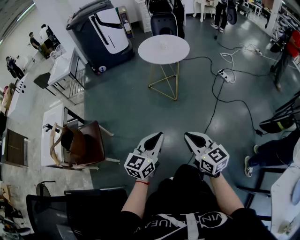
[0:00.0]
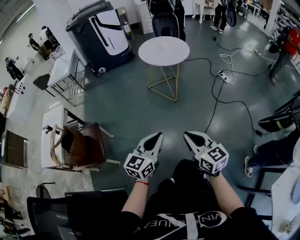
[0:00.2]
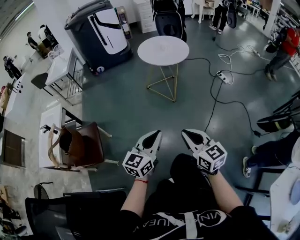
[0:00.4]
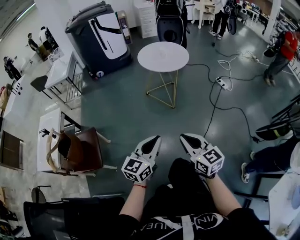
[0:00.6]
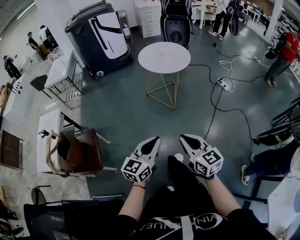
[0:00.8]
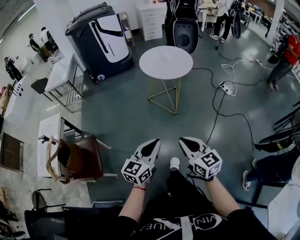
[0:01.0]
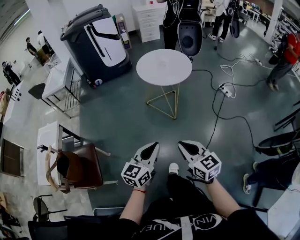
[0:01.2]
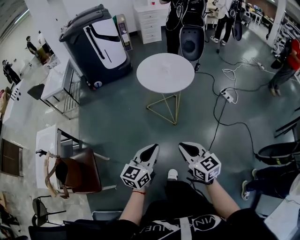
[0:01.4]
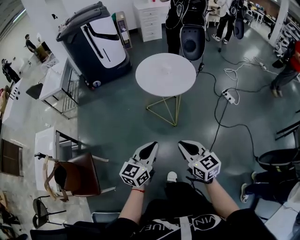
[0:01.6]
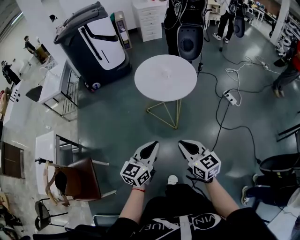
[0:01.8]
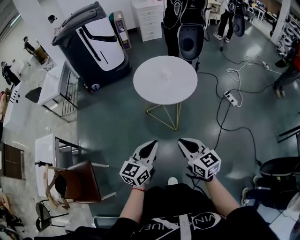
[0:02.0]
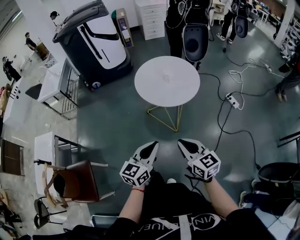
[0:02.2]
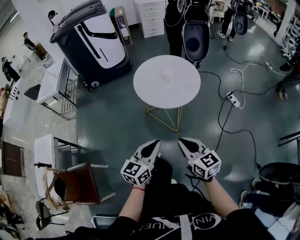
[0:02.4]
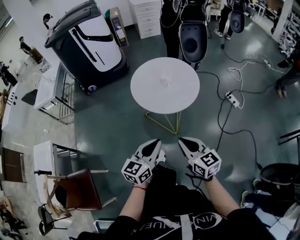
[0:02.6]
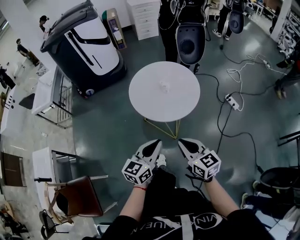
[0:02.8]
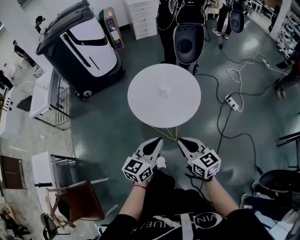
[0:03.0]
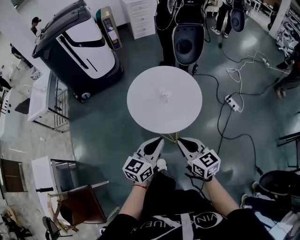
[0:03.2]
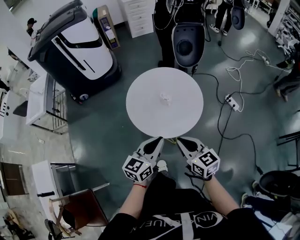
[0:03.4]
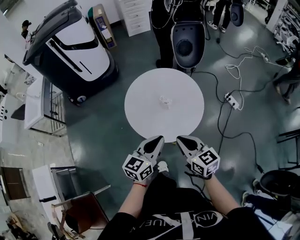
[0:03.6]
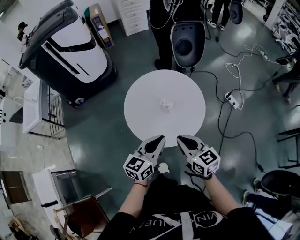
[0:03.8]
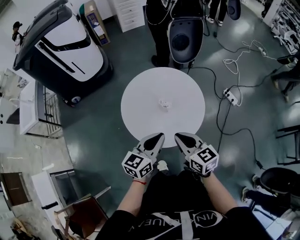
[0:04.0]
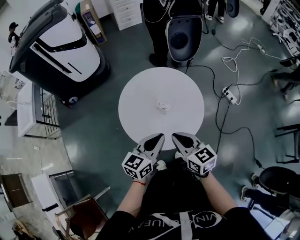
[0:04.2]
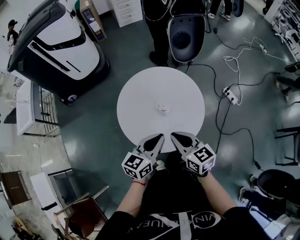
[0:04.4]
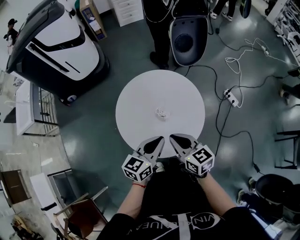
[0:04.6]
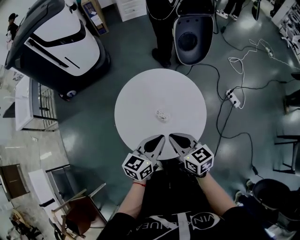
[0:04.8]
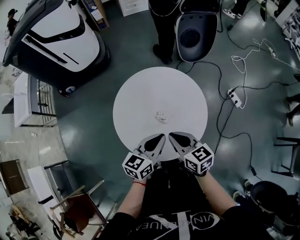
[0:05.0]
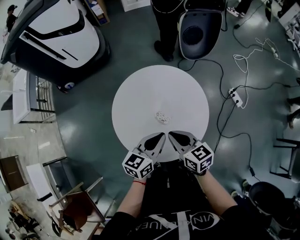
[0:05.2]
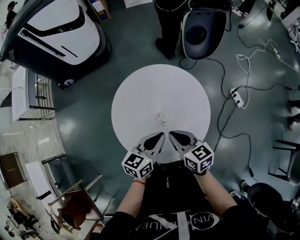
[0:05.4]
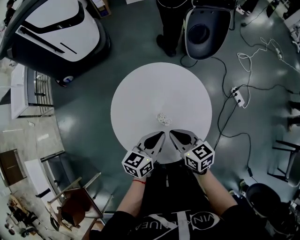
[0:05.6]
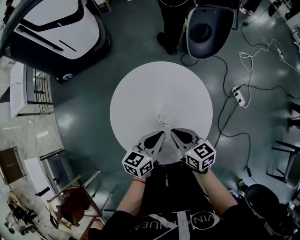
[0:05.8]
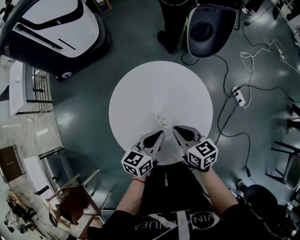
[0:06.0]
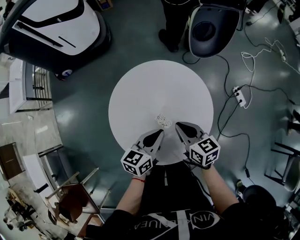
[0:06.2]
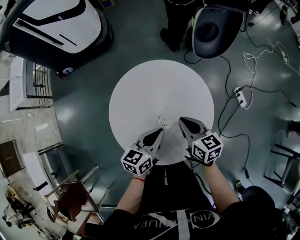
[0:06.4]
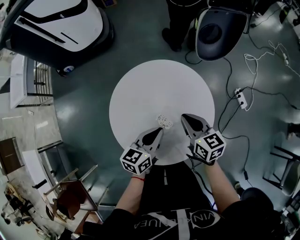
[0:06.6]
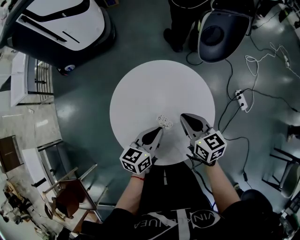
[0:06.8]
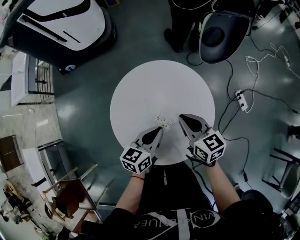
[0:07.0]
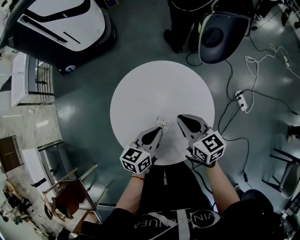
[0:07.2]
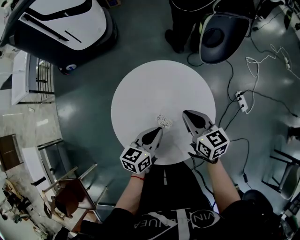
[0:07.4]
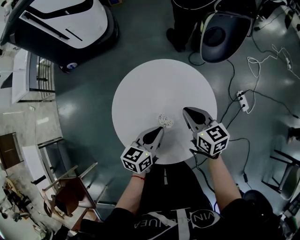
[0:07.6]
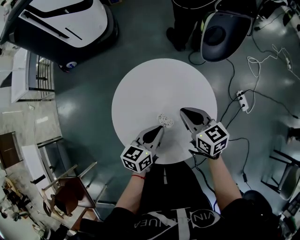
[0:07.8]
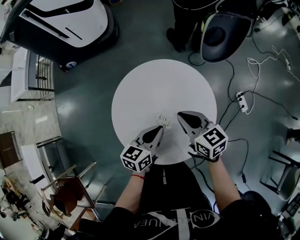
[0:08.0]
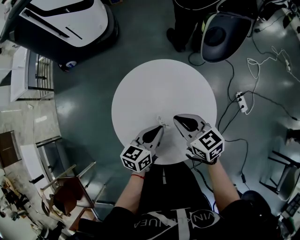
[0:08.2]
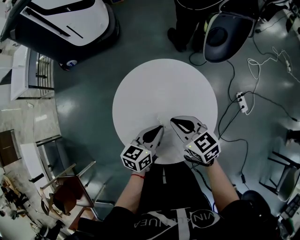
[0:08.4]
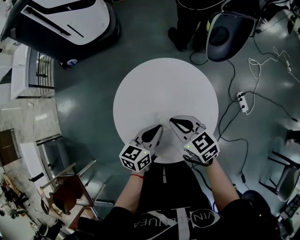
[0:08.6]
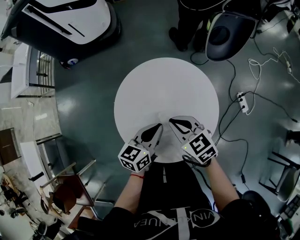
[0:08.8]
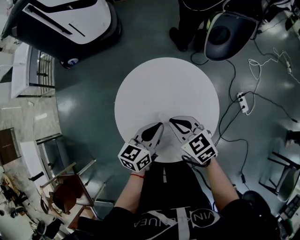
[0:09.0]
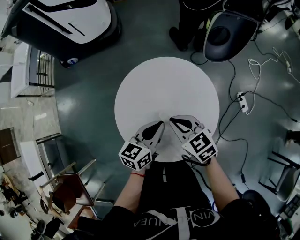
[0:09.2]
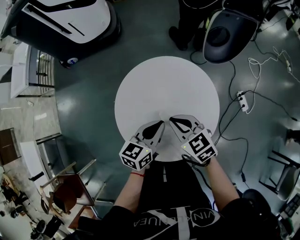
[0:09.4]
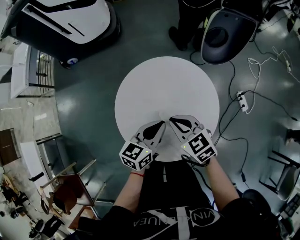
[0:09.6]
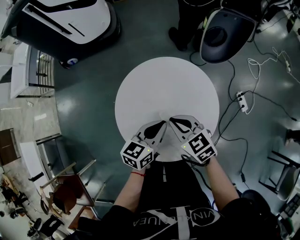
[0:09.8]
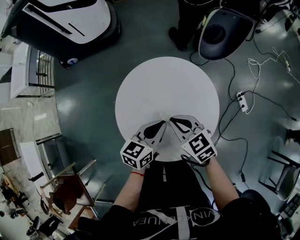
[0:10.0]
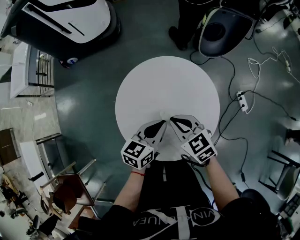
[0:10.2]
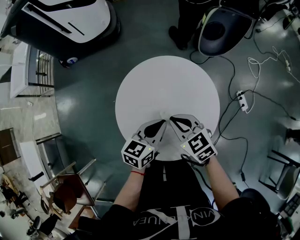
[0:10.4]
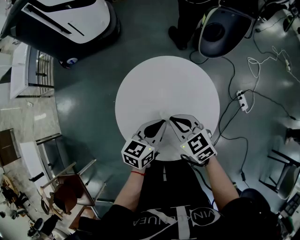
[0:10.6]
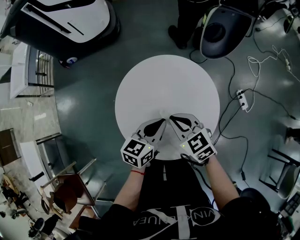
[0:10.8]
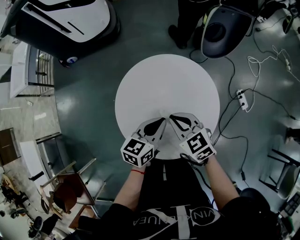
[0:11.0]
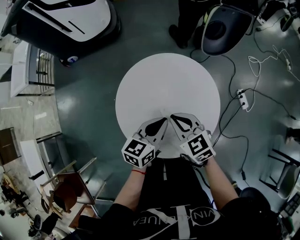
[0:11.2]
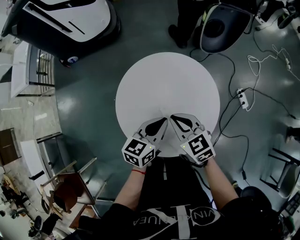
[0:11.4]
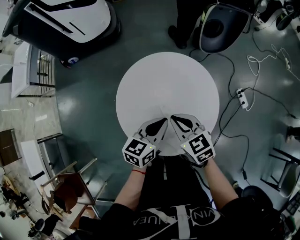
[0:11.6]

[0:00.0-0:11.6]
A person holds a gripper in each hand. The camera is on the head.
0:00.0 to 0:01.4: Both grippers travel together forward, about 25 cm.
0:01.4 to 0:02.8: The two grippers go roughly 30 cm forward.
0:02.8 to 0:04.4: The grippers both shift forward by roughly 25 cm.
0:04.4 to 0:05.8: The two grippers go some 15 cm forward and downward.
0:05.8 to 0:07.2: The right gripper travels forward by some 5 cm.
0:07.2 to 0:08.8: The right gripper moves to the left, roughly 5 cm, and turns by some 20 degrees.
0:08.8 to 0:11.6: There are only small adjustments of the grippers.

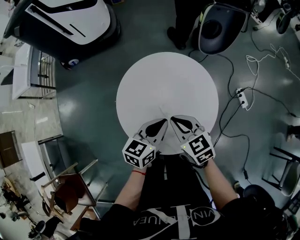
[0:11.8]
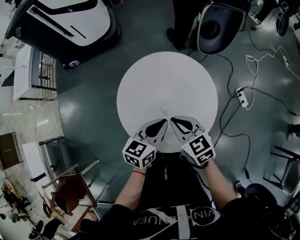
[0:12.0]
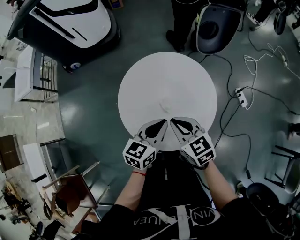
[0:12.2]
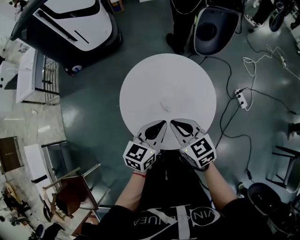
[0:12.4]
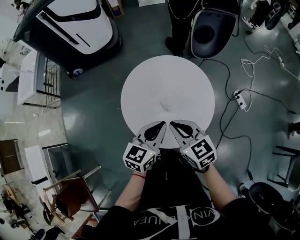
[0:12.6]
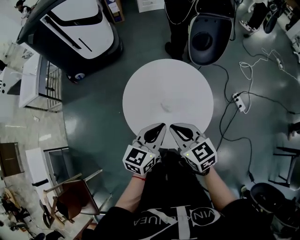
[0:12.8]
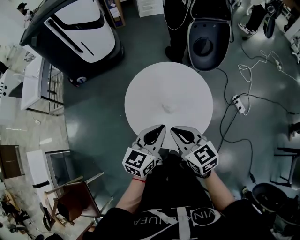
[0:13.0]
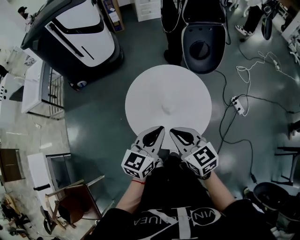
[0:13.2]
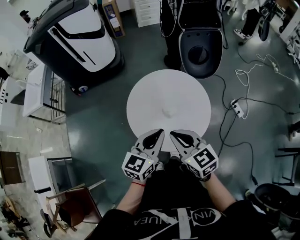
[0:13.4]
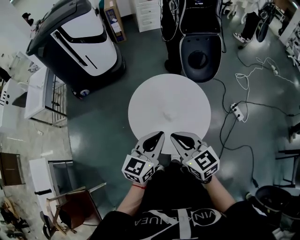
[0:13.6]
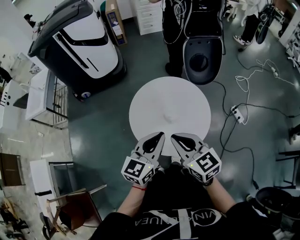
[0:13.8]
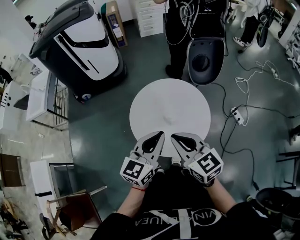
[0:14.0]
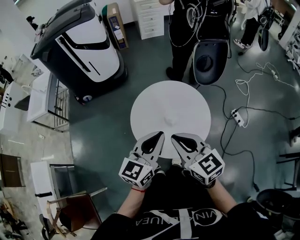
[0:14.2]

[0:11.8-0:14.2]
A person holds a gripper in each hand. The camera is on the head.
0:11.8 to 0:13.0: Both grippers move upward and backward, some 15 cm.
0:13.0 to 0:14.2: Both grippers travel together upward, roughly 10 cm.

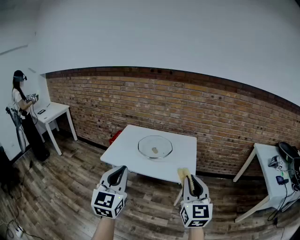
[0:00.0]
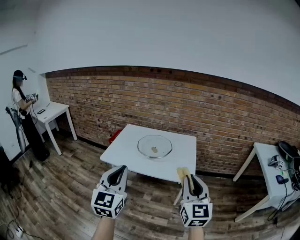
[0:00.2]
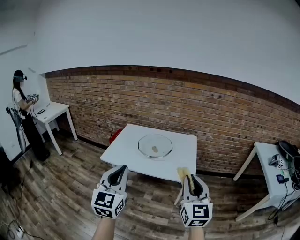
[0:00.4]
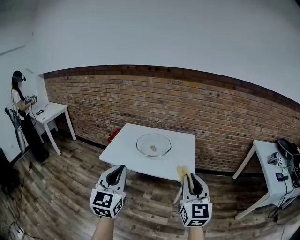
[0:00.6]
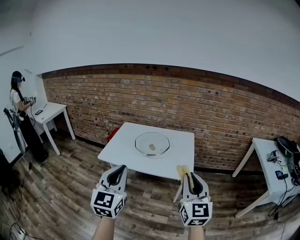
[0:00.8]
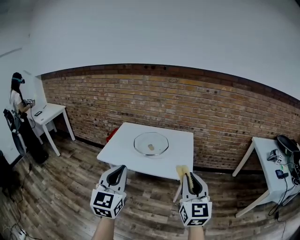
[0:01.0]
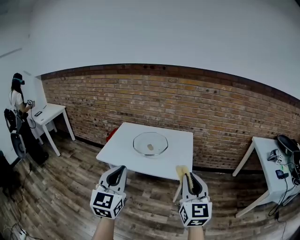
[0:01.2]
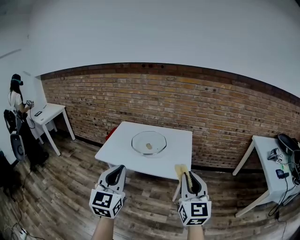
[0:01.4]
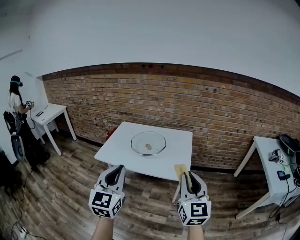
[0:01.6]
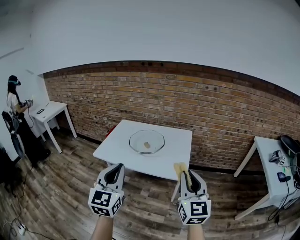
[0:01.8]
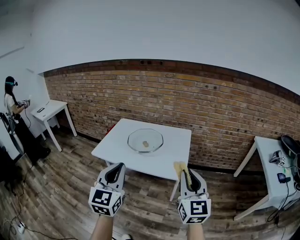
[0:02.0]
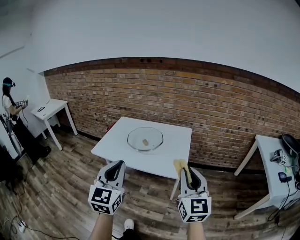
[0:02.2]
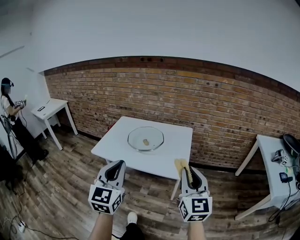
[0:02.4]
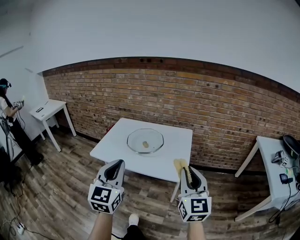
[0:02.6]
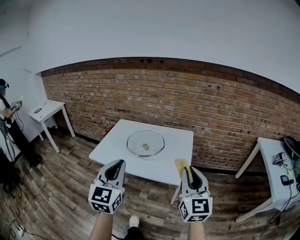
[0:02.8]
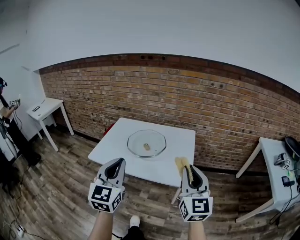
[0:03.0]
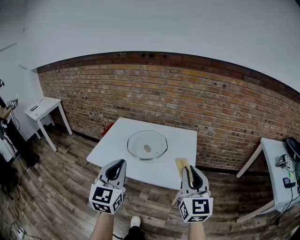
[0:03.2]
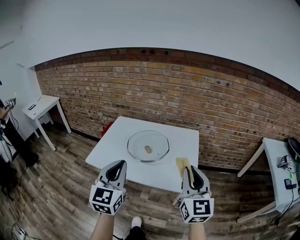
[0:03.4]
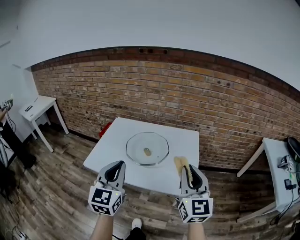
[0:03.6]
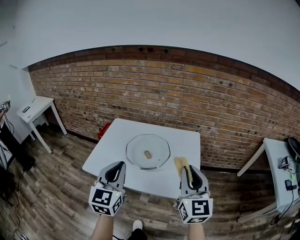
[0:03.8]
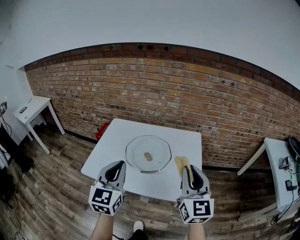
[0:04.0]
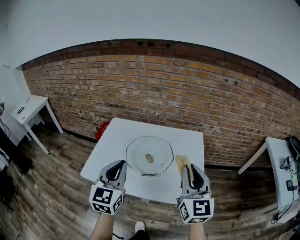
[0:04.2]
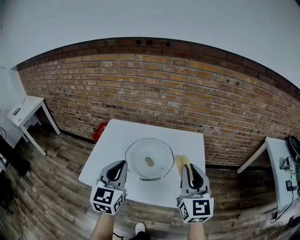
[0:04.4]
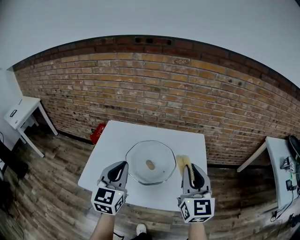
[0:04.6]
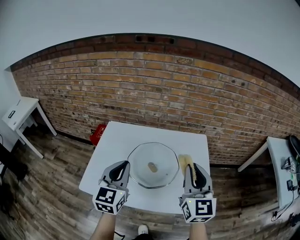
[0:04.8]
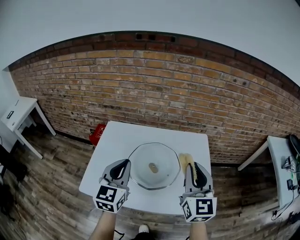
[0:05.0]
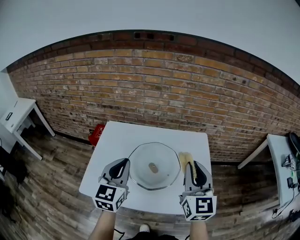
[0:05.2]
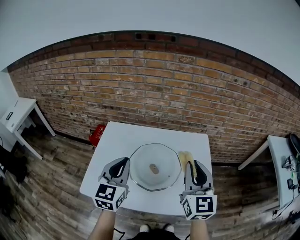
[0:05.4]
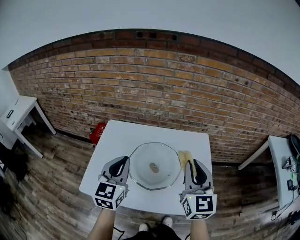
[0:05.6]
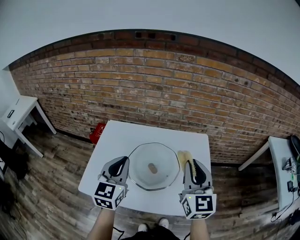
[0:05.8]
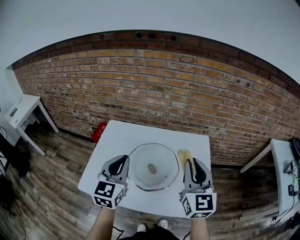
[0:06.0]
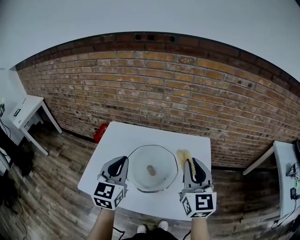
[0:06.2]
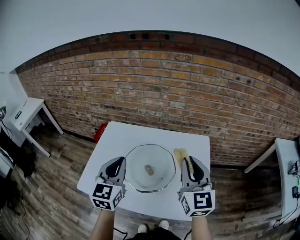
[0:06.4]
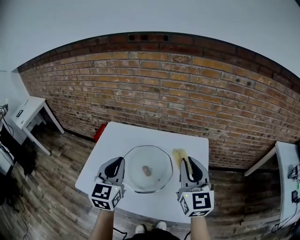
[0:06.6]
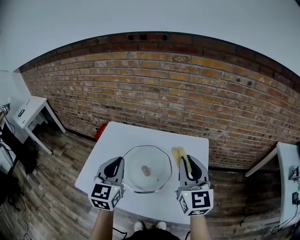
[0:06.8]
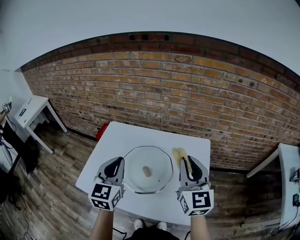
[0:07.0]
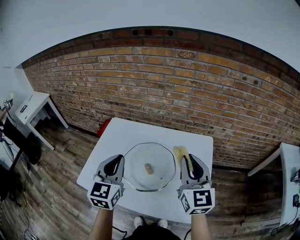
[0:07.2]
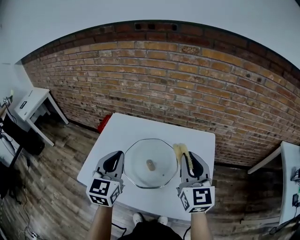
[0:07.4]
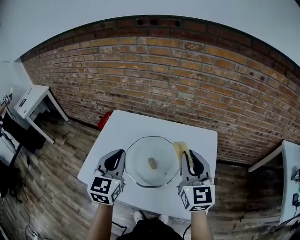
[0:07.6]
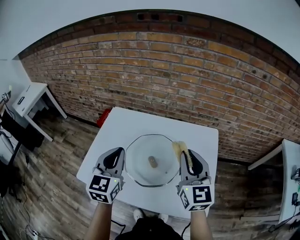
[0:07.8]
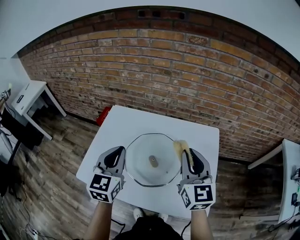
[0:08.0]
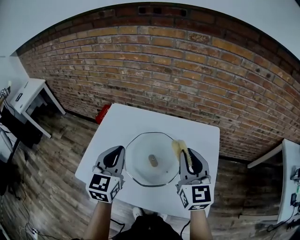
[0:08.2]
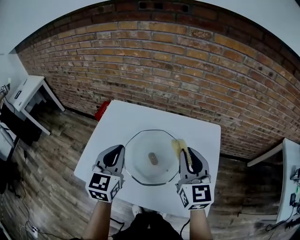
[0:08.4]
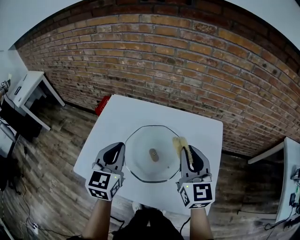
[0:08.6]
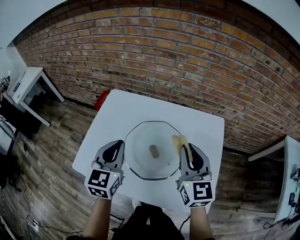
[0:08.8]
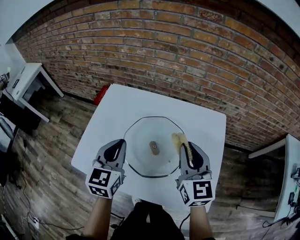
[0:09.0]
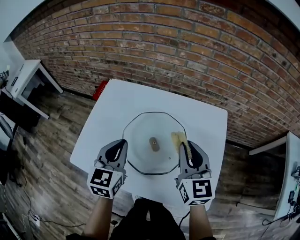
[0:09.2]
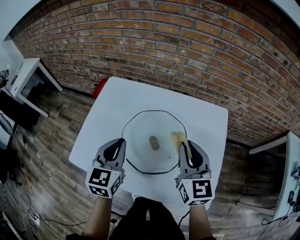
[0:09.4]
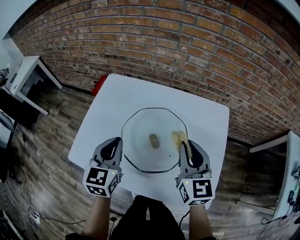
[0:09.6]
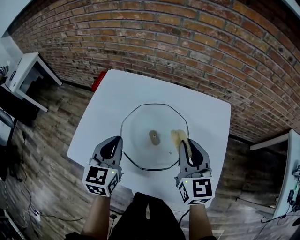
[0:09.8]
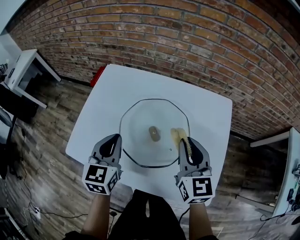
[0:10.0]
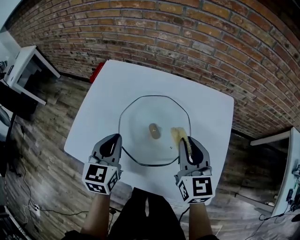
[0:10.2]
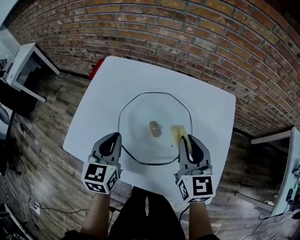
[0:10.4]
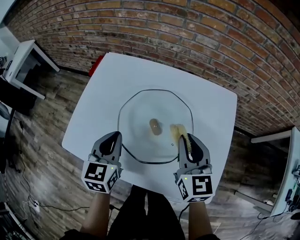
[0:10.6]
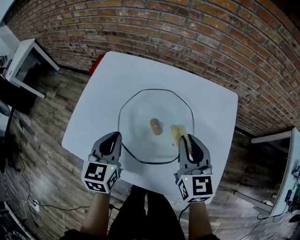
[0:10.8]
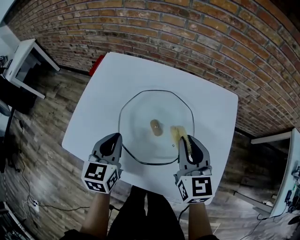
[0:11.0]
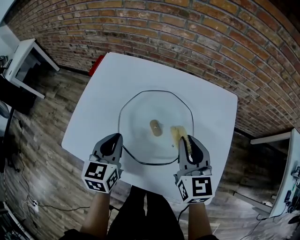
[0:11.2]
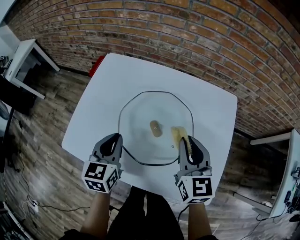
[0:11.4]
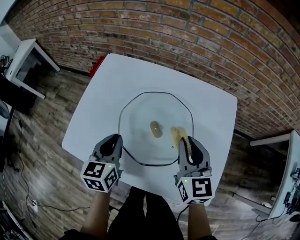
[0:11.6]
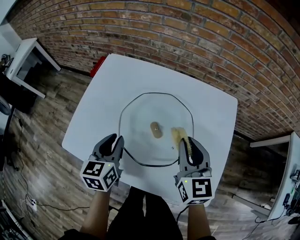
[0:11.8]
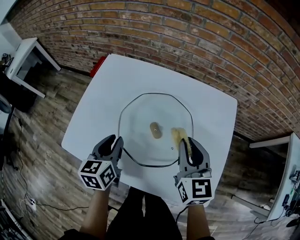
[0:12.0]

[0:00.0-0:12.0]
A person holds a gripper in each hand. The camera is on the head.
0:00.0 to 0:01.6: The two grippers go roughly 5 cm to the right.
0:01.6 to 0:03.0: Both grippers move forward, approximately 10 cm.
0:03.0 to 0:04.4: The right gripper is displaced forward and to the left by some 25 cm. Meanwhile the left gripper is displaced forward by roughly 25 cm.
0:04.4 to 0:06.0: The grippers both shift forward by roughly 10 cm.
0:06.0 to 0:07.6: The right gripper moves approximately 5 cm.
0:07.6 to 0:09.0: The two grippers go about 10 cm downward.
0:09.0 to 0:10.4: The grippers both shift downward by approximately 10 cm.
0:10.4 to 0:12.0: The grippers make only small movements.
